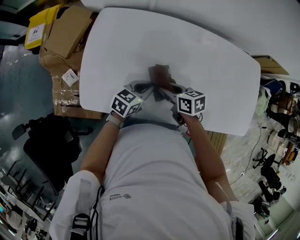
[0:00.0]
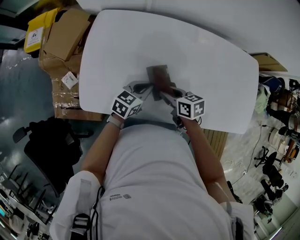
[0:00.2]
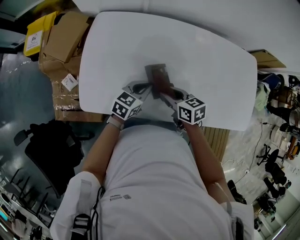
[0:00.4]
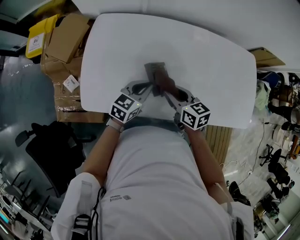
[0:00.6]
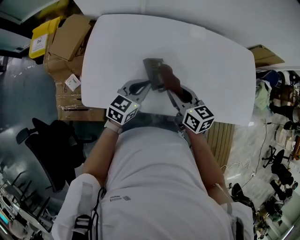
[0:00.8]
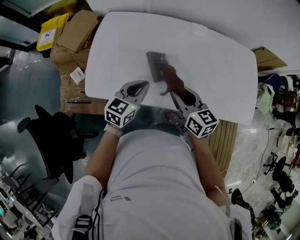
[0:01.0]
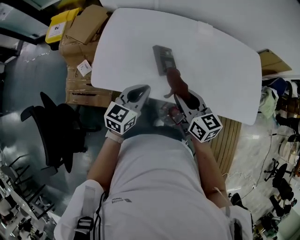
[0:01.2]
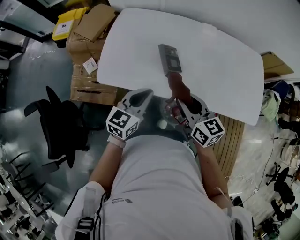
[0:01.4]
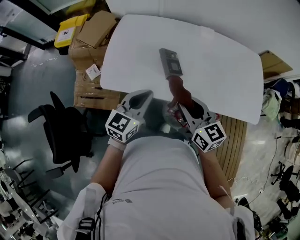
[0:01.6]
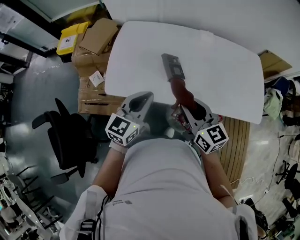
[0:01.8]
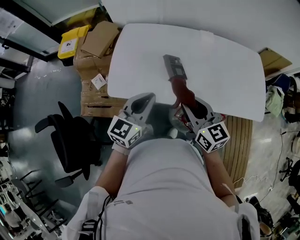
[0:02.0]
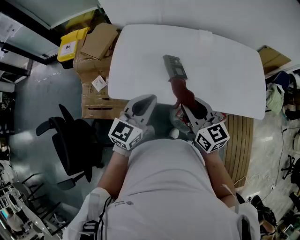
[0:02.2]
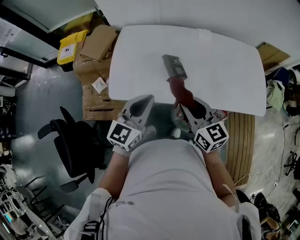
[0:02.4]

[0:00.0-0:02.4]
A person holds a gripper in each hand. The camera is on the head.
0:00.0 to 0:01.2: The left gripper is displaced backward and upward by approximately 20 cm, and swivels some 20 degrees. Meanwhile the right gripper travels upward and backward by some 20 cm, and turns by about 30 degrees.
0:01.2 to 0:02.4: The grippers both shift upward, backward and to the left by approximately 10 cm.

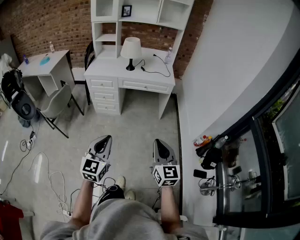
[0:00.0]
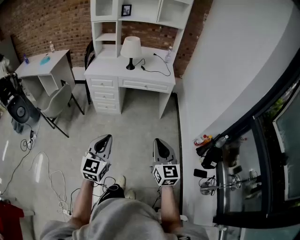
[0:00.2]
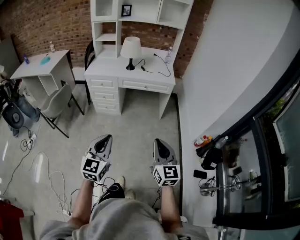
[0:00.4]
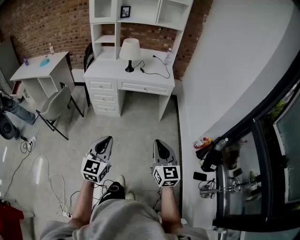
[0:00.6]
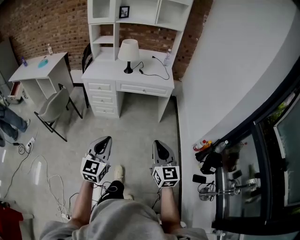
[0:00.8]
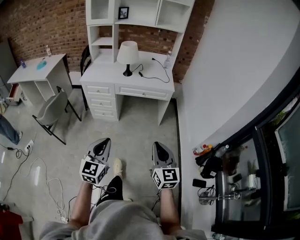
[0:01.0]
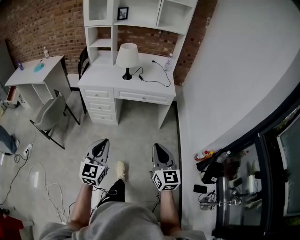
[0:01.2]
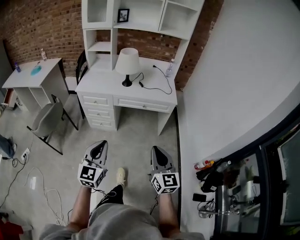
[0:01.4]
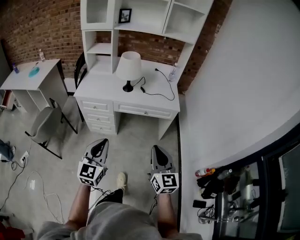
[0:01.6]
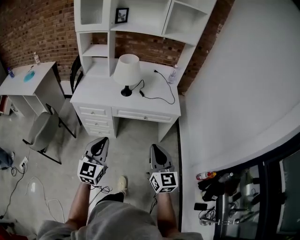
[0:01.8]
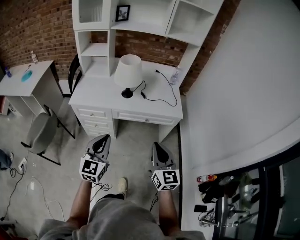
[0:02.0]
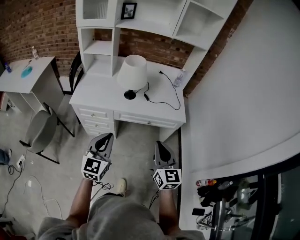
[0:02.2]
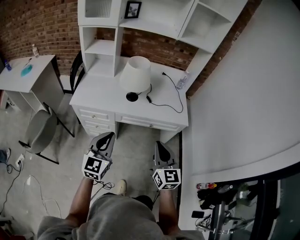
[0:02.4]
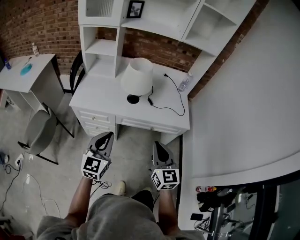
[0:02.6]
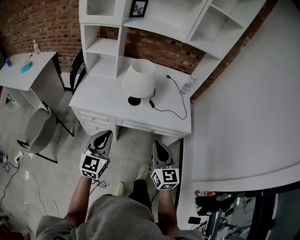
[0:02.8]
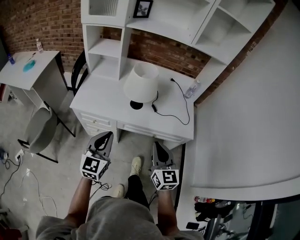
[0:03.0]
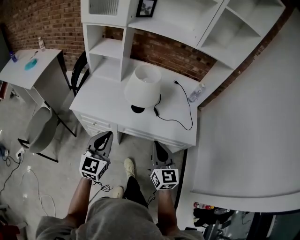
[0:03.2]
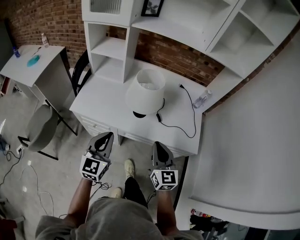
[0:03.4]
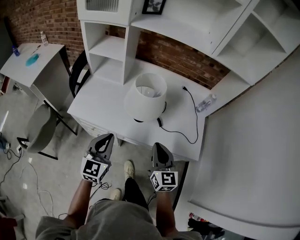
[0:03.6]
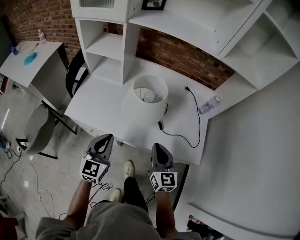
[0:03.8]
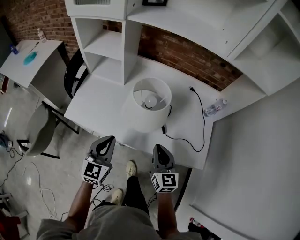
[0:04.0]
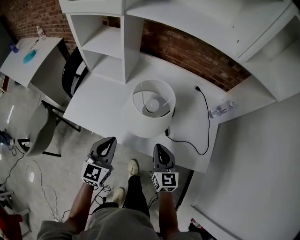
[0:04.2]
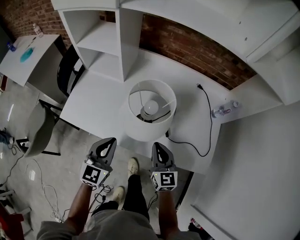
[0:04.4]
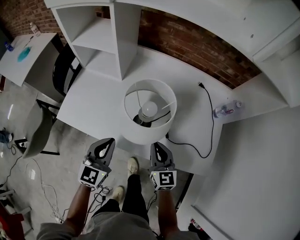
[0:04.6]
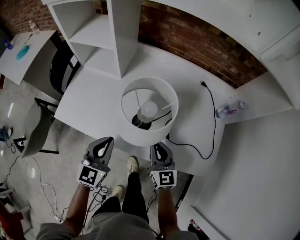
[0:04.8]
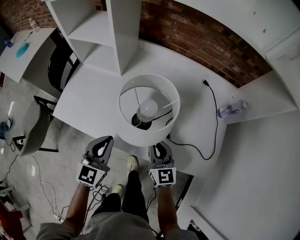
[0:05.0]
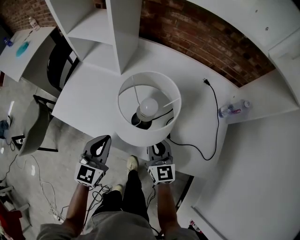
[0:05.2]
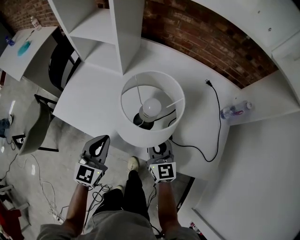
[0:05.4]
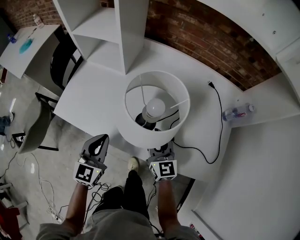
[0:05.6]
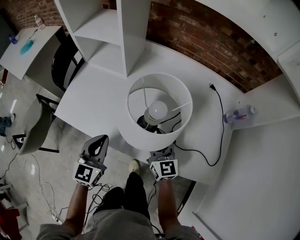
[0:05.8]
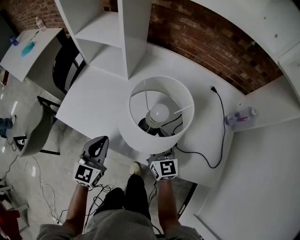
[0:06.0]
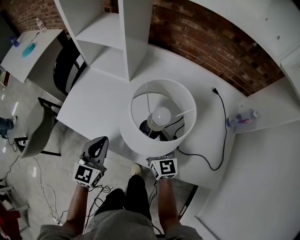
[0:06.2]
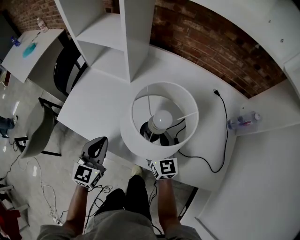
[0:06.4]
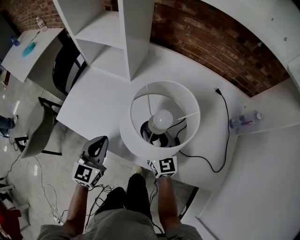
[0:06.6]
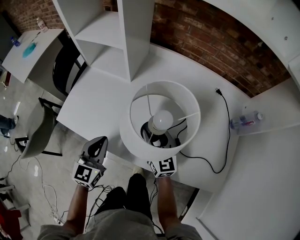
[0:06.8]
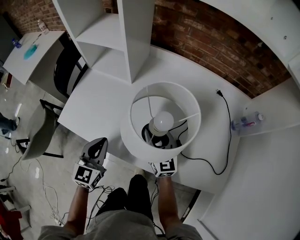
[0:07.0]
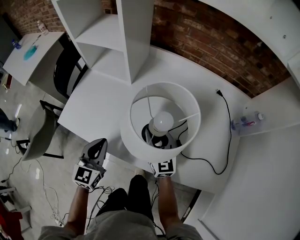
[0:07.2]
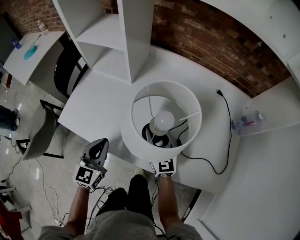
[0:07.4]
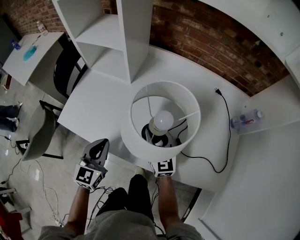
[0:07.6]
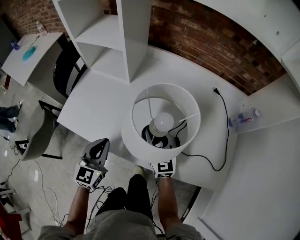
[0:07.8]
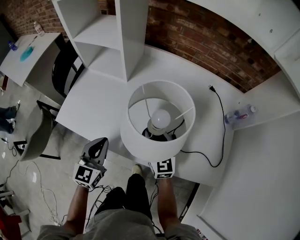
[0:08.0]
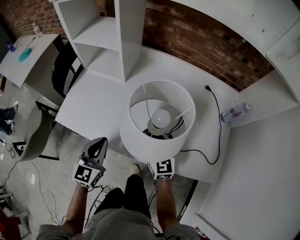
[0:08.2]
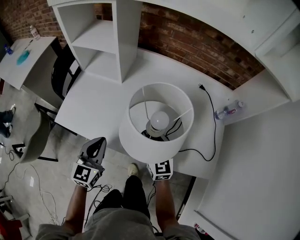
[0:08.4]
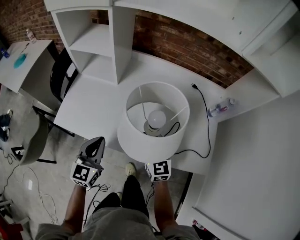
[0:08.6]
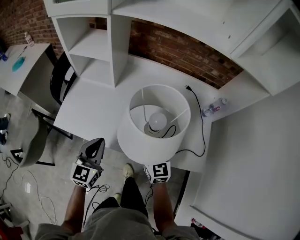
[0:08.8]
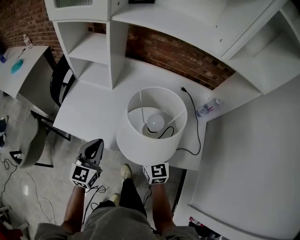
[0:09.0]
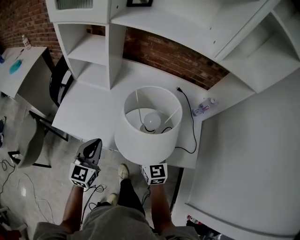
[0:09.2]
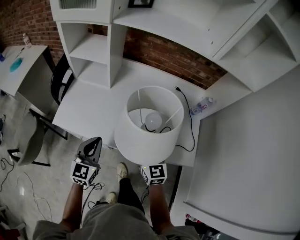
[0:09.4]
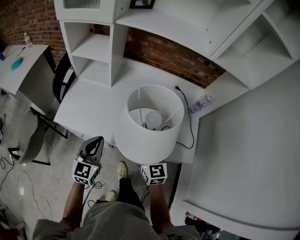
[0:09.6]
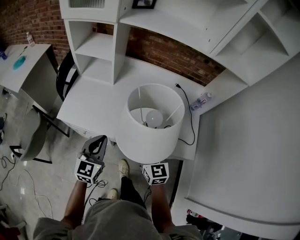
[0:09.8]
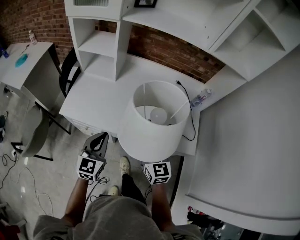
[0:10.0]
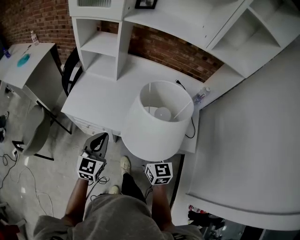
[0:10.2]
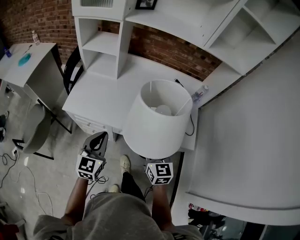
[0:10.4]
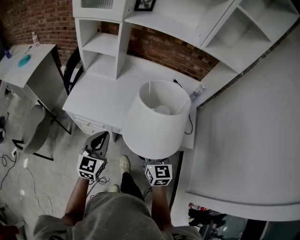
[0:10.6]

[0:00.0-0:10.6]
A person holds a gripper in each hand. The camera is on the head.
0:00.0 to 0:01.6: Both grippers travel together forward, roughly 30 cm.
0:01.6 to 0:03.0: The grippers both shift forward by some 30 cm.
0:03.0 to 0:04.6: Both grippers travel together forward and downward, approximately 30 cm.
0:04.6 to 0:06.0: The left gripper goes about 10 cm downward and to the left. The right gripper heads forward, covering approximately 5 cm, and opens its fingers.
0:06.0 to 0:07.6: The grippers move only a little.
0:07.6 to 0:09.0: The right gripper is displaced backward and upward by some 15 cm; the left gripper heads upward, covering some 10 cm.
0:09.0 to 0:10.6: Both grippers move backward and upward, roughly 15 cm.

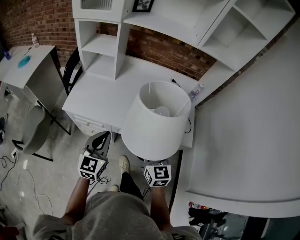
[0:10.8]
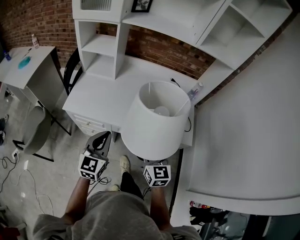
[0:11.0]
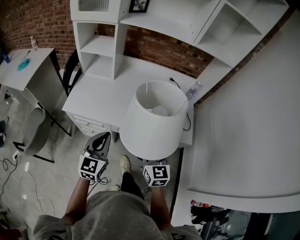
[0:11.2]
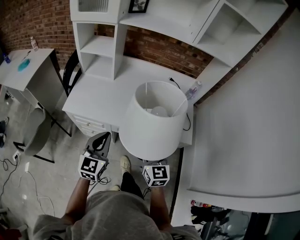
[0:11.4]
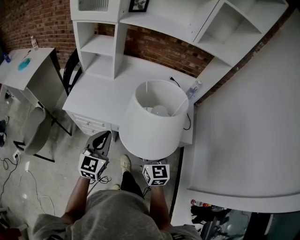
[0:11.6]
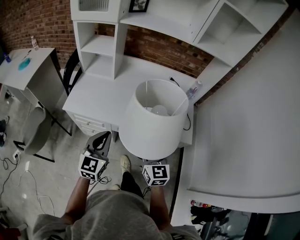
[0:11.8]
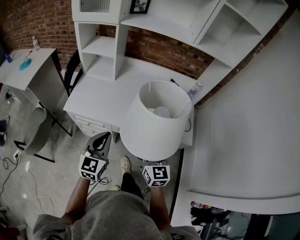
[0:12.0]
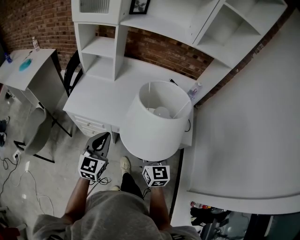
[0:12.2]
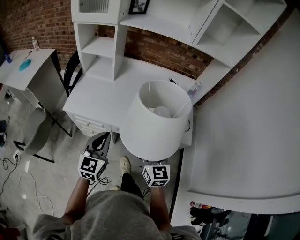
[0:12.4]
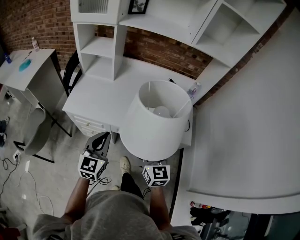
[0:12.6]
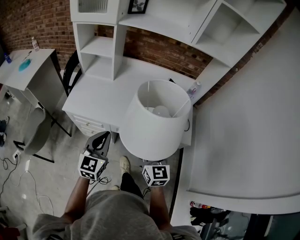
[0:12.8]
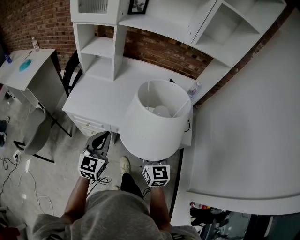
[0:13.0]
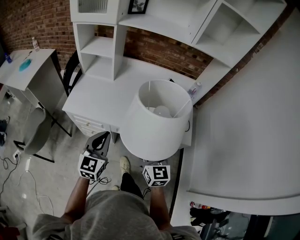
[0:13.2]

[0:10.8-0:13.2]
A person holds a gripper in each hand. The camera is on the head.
0:10.8 to 0:12.0: The grippers make only small movements.
0:12.0 to 0:13.2: Both grippers stay about where they are.

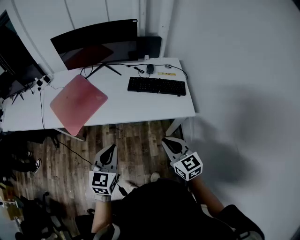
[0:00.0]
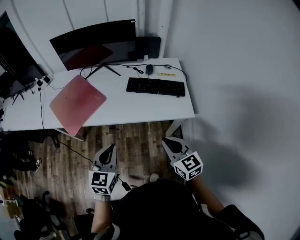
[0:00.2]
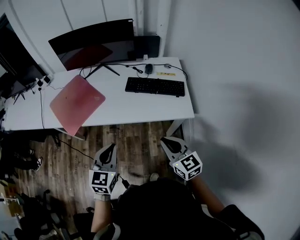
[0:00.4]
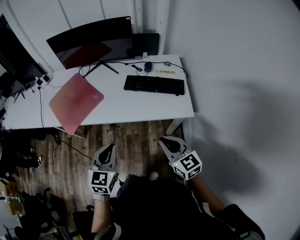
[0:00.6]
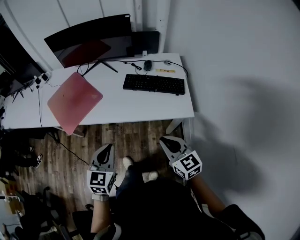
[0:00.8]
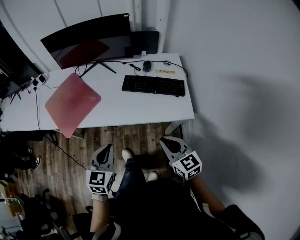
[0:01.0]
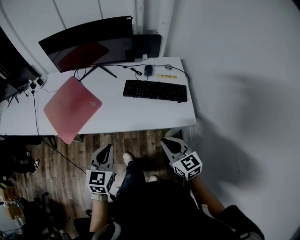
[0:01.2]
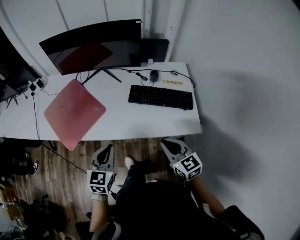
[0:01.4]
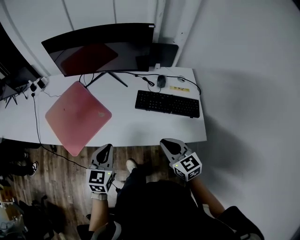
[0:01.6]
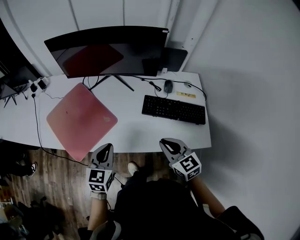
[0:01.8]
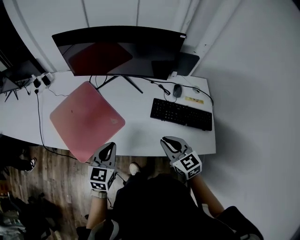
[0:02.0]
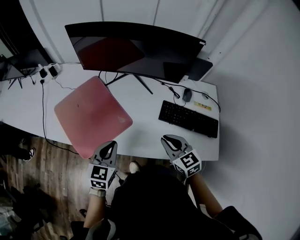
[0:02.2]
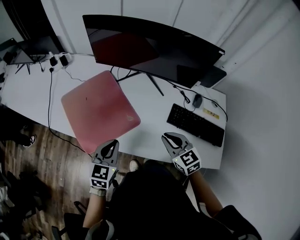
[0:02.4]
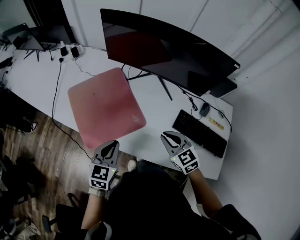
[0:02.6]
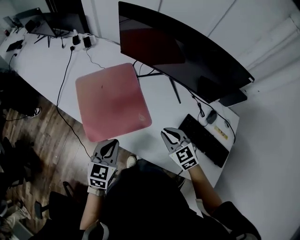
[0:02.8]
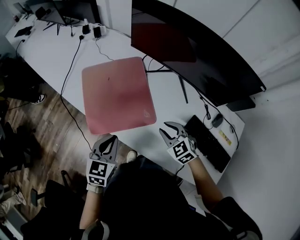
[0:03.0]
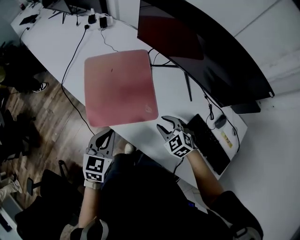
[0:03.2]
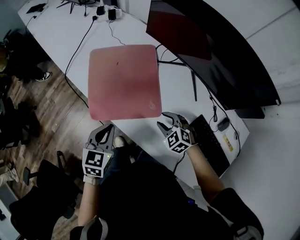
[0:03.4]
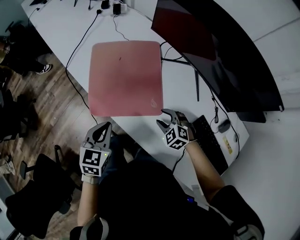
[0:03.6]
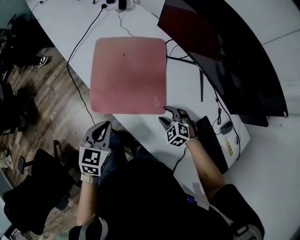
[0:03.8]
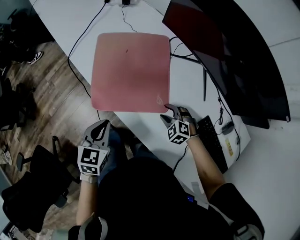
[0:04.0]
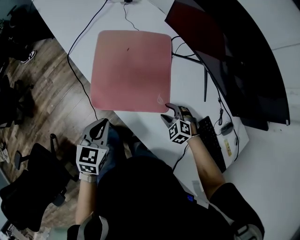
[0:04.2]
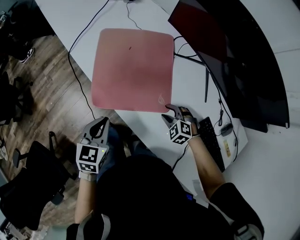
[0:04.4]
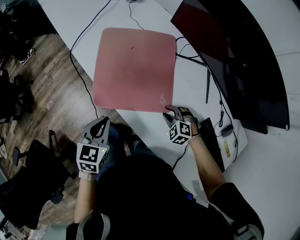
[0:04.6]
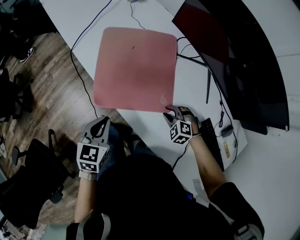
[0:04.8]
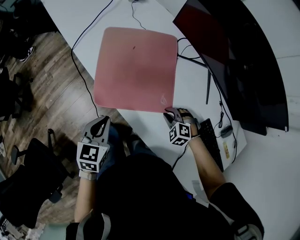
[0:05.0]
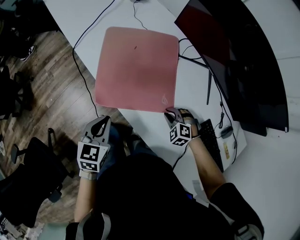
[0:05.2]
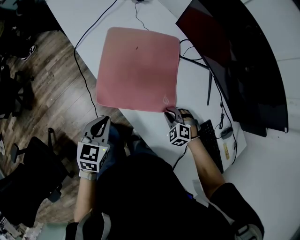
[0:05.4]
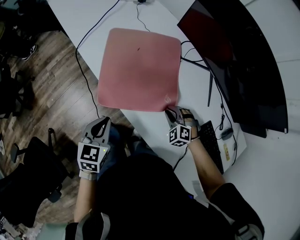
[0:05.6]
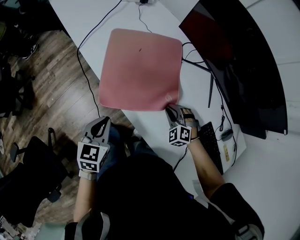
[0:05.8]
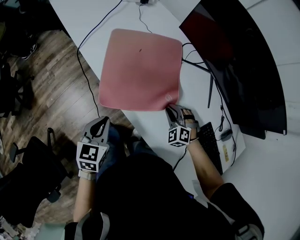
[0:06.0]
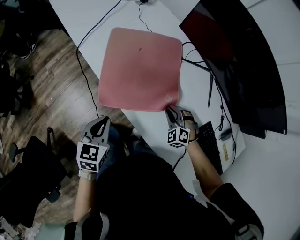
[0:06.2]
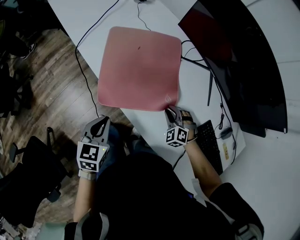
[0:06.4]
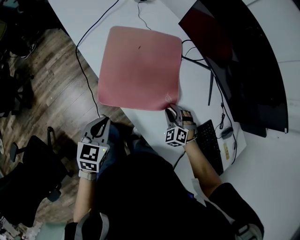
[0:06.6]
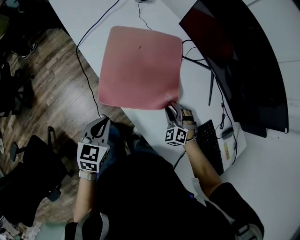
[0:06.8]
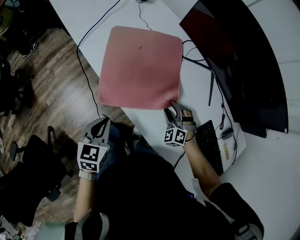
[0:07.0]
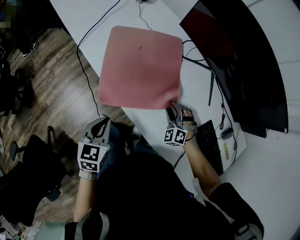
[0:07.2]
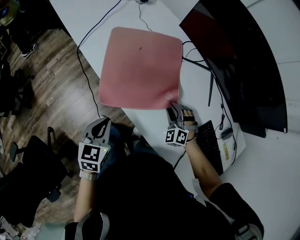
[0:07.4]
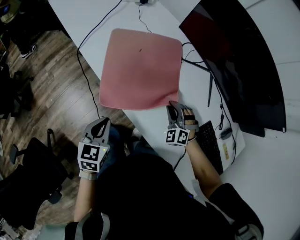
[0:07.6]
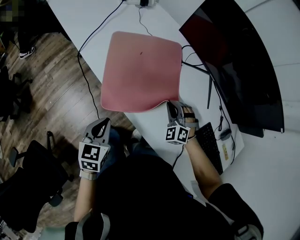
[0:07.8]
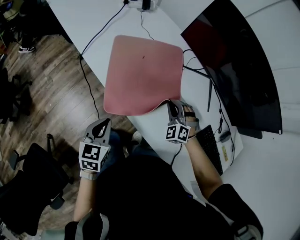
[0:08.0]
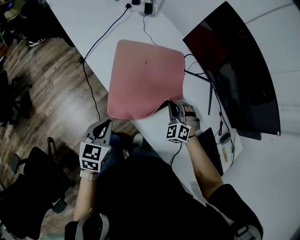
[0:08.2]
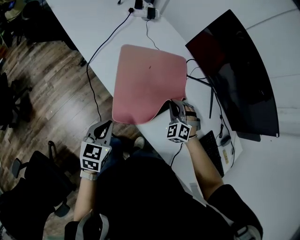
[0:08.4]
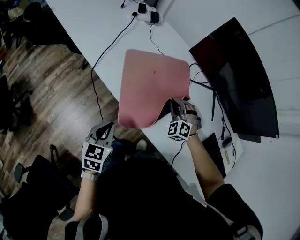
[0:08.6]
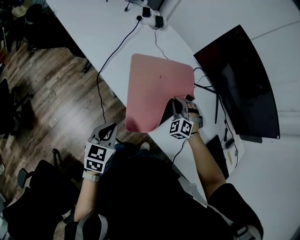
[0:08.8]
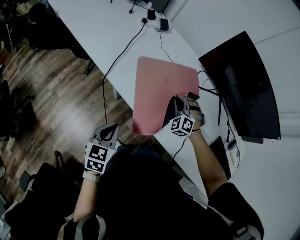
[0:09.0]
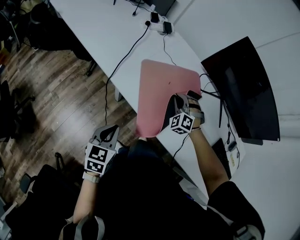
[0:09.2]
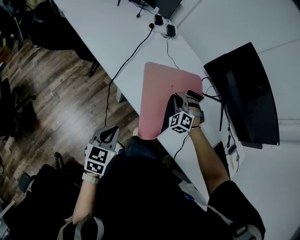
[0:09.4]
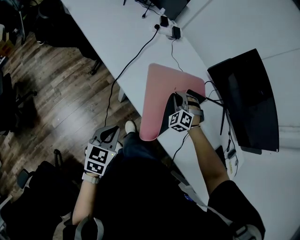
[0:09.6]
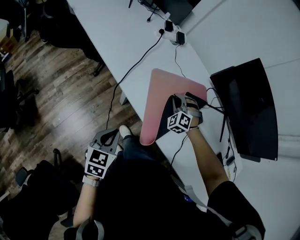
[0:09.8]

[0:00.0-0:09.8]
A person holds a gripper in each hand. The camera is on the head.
0:00.0 to 0:01.4: Both grippers move forward, roughly 15 cm.
0:01.4 to 0:02.8: The grippers both shift forward and to the left by some 30 cm. The left gripper turns by about 20 degrees. The right gripper changes its angle by approximately 40 degrees.
0:02.8 to 0:04.2: The right gripper moves downward, approximately 20 cm, rotates some 50 degrees, and opens its fingers; the left gripper heads to the left and downward, covering approximately 10 cm, and turns by some 20 degrees.
0:04.2 to 0:05.6: The right gripper closes.
0:05.6 to 0:07.0: The right gripper opens its fingers.
0:07.0 to 0:08.4: The left gripper travels to the left by roughly 10 cm; the right gripper heads to the left, forward and upward, covering roughly 15 cm, and closes up.
0:08.4 to 0:09.8: The right gripper heads to the left and forward, covering approximately 20 cm. The left gripper heads to the left, covering approximately 15 cm.
